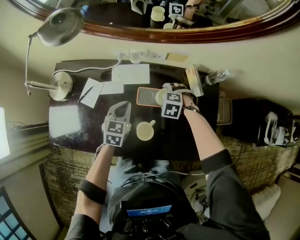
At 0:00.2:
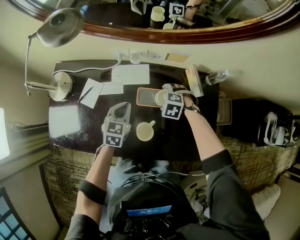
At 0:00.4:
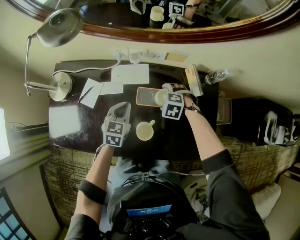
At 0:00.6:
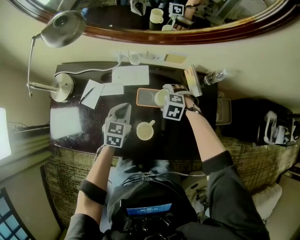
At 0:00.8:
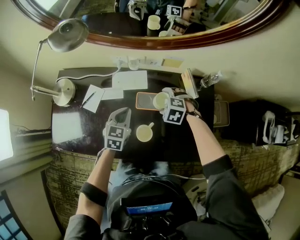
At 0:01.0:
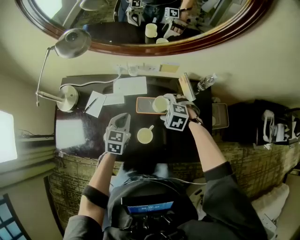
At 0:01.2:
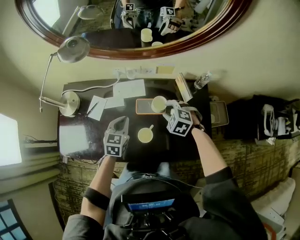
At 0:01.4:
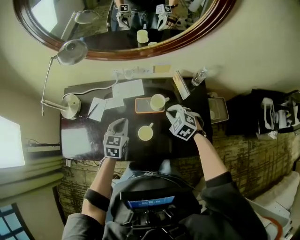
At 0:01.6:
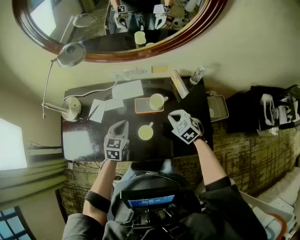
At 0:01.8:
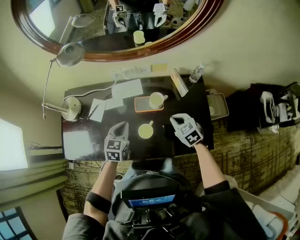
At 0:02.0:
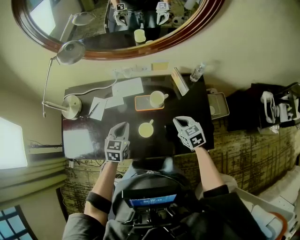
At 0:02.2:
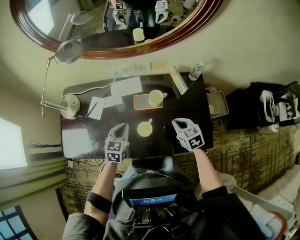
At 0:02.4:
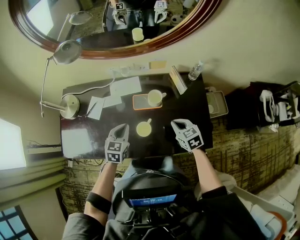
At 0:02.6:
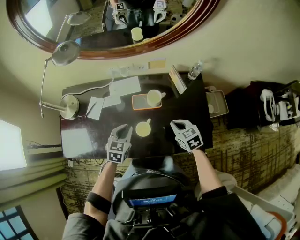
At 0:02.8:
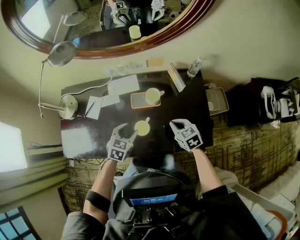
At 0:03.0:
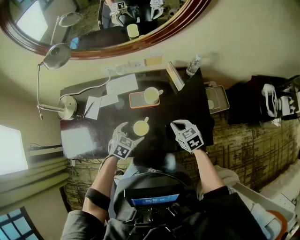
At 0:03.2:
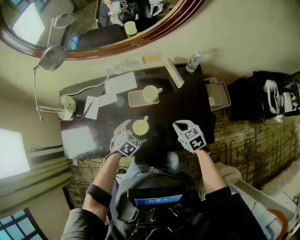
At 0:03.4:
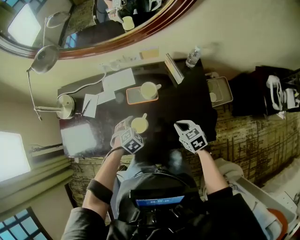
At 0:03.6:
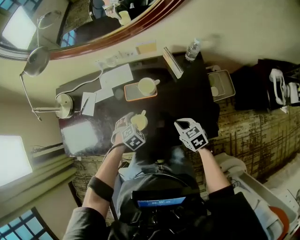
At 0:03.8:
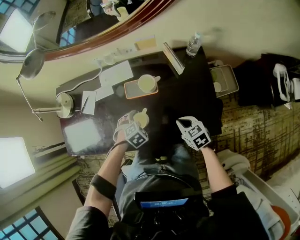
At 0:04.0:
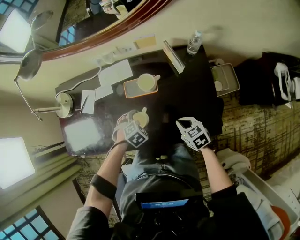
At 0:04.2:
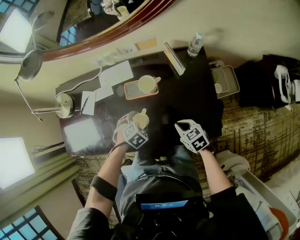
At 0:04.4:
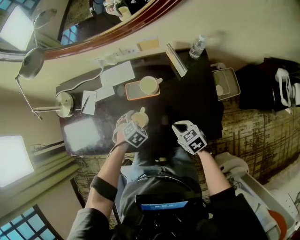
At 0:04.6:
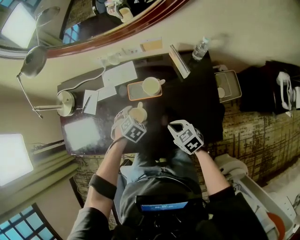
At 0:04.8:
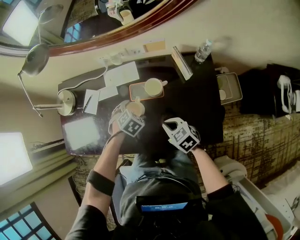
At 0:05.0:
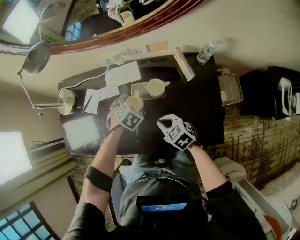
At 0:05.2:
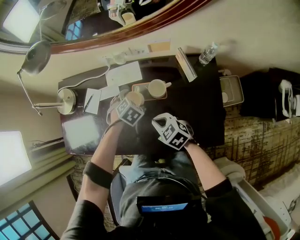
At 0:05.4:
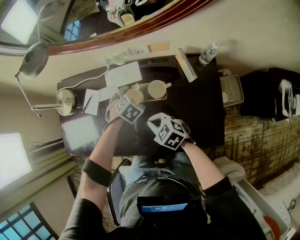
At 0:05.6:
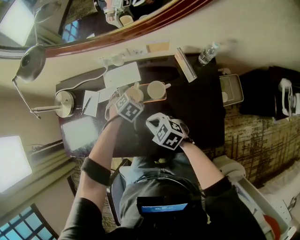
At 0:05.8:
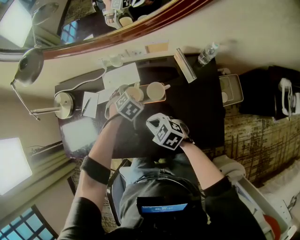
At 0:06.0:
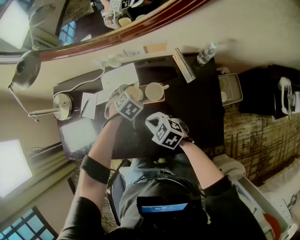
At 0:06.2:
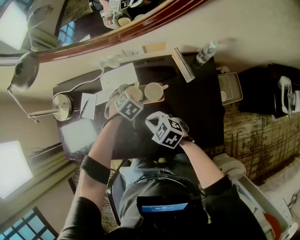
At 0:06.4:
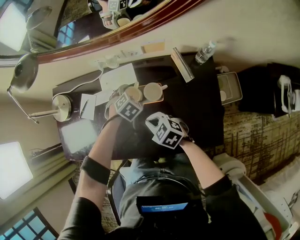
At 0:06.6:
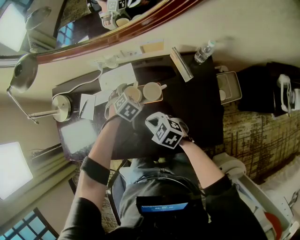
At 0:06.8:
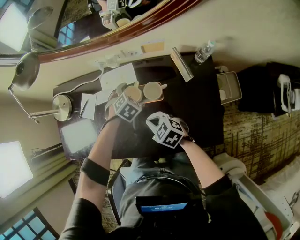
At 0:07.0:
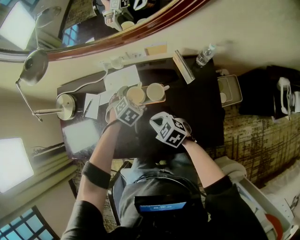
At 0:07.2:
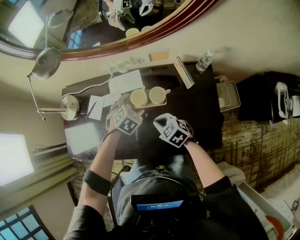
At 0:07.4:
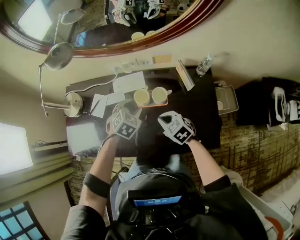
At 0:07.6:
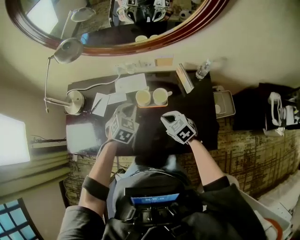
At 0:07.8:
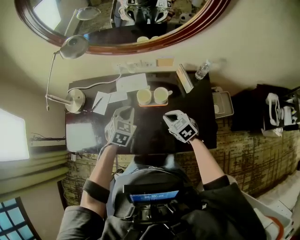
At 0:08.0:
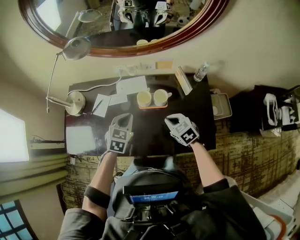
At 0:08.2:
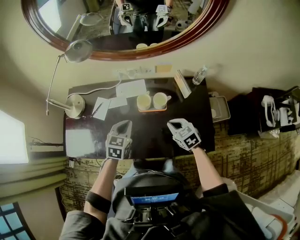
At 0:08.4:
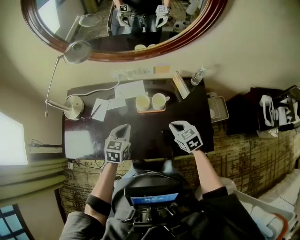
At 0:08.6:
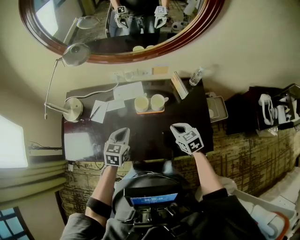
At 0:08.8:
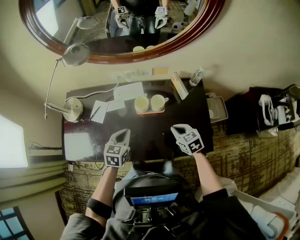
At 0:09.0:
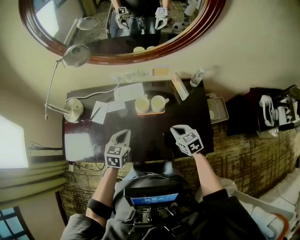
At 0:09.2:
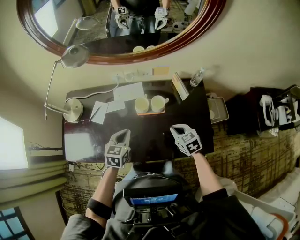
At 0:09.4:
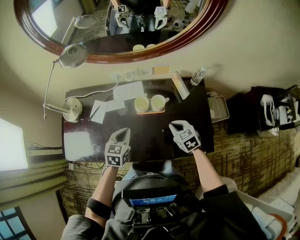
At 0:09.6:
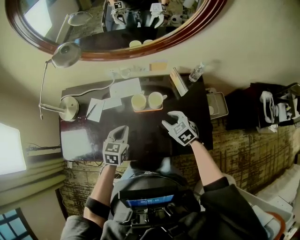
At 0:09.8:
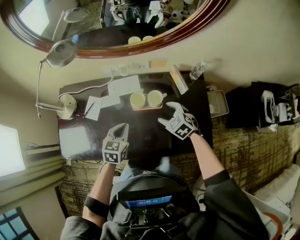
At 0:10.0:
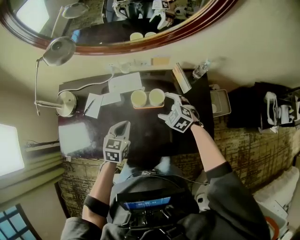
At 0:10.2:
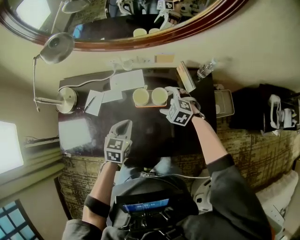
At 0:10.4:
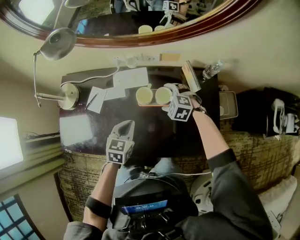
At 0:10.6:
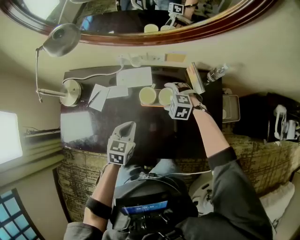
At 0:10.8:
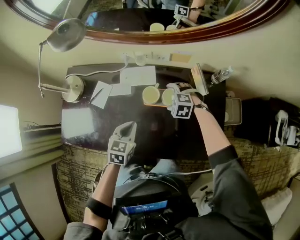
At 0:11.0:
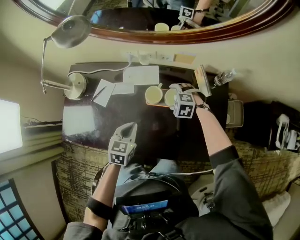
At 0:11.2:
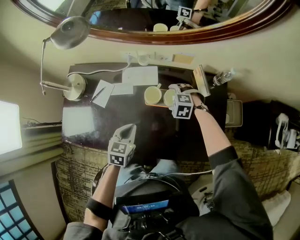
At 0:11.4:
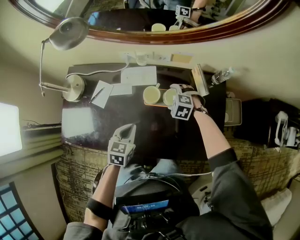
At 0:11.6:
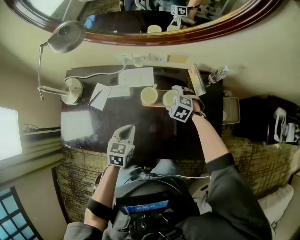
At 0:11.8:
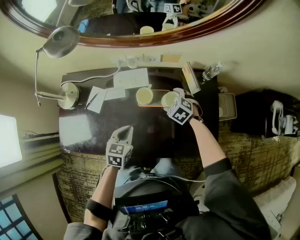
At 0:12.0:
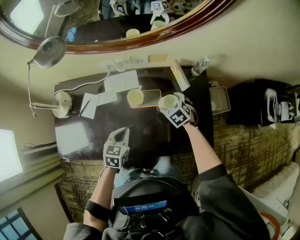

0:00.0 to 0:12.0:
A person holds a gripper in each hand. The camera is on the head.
0:00.0 to 0:01.6: The left gripper shifts by approximately 10 cm; the right gripper shifts approximately 15 cm upward, changes its angle by some 40 degrees, and closes.
0:01.6 to 0:03.0: The left gripper travels to the right, downward and backward by about 15 cm, turns by some 30 degrees, and opens its fingers. The right gripper heads backward, covering approximately 5 cm, and swivels roughly 20 degrees.
0:03.0 to 0:04.4: The two grippers go roughly 10 cm downward. The left gripper changes its angle by some 30 degrees.
0:04.4 to 0:06.0: The left gripper changes place by some 15 cm, while the right gripper shifts by approximately 15 cm, and swivels some 20 degrees.
0:06.0 to 0:07.6: The right gripper travels upward and to the right by about 10 cm. The left gripper heads upward and backward, covering some 15 cm, changes its angle by some 30 degrees, and closes up.
0:07.6 to 0:09.0: The left gripper moves backward and to the left, roughly 10 cm, and changes its angle by some 30 degrees, while the right gripper goes some 5 cm to the right.
0:09.0 to 0:10.4: The left gripper moves roughly 5 cm. Meanwhile the right gripper heads forward and downward, covering about 20 cm, twists roughly 50 degrees counterclockwise, seen from behind, and opens up.
0:10.4 to 0:12.0: The right gripper moves to the right, some 5 cm, and rotates roughly 40 degrees.

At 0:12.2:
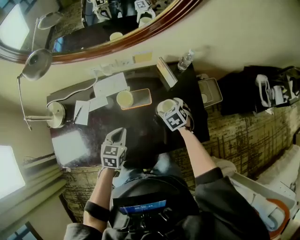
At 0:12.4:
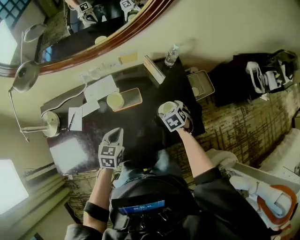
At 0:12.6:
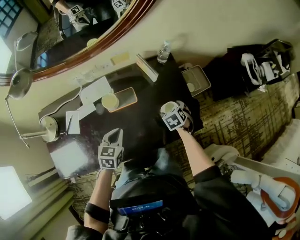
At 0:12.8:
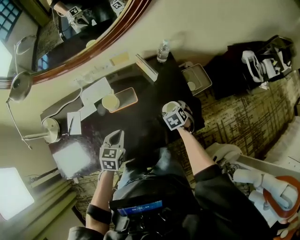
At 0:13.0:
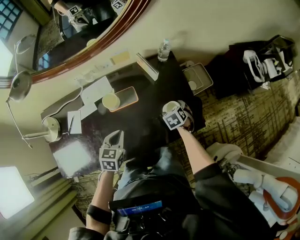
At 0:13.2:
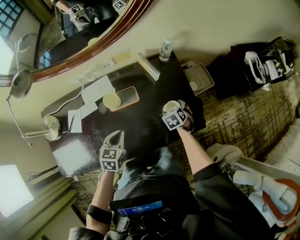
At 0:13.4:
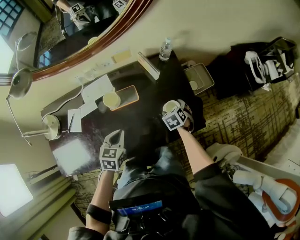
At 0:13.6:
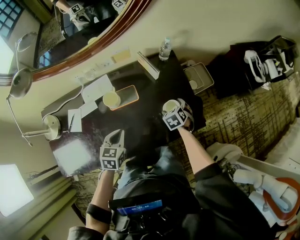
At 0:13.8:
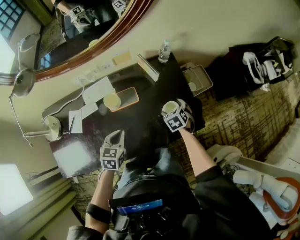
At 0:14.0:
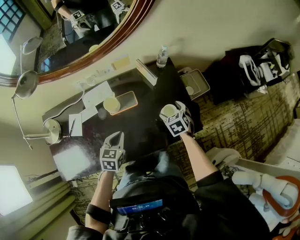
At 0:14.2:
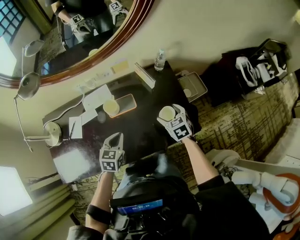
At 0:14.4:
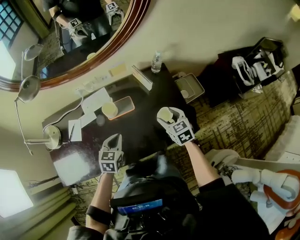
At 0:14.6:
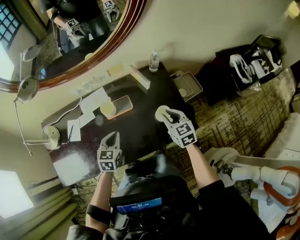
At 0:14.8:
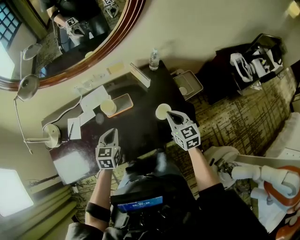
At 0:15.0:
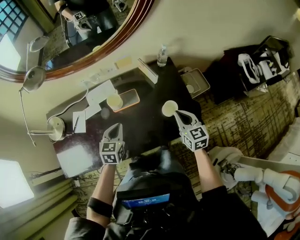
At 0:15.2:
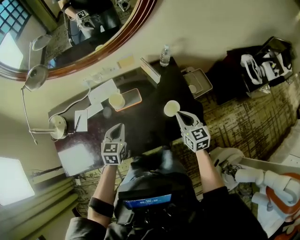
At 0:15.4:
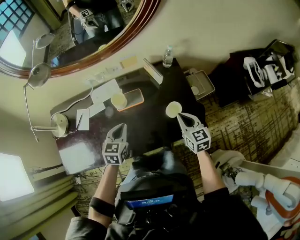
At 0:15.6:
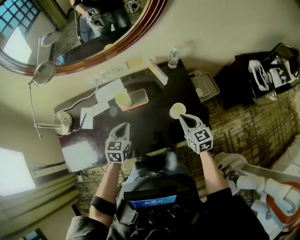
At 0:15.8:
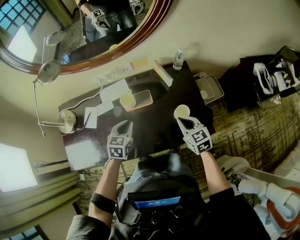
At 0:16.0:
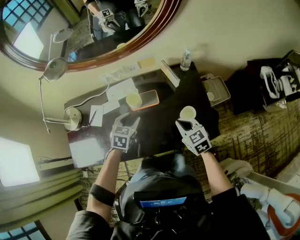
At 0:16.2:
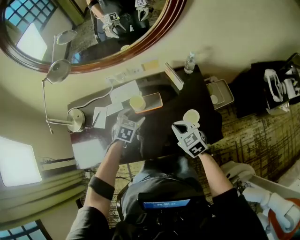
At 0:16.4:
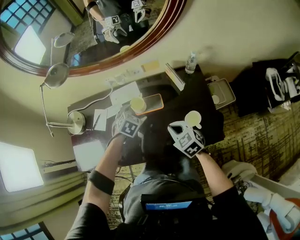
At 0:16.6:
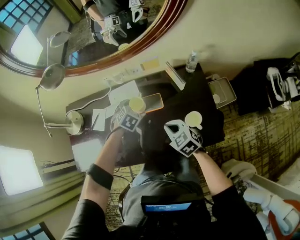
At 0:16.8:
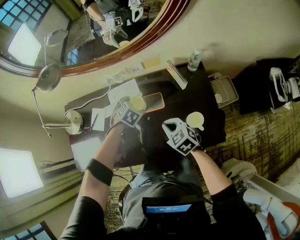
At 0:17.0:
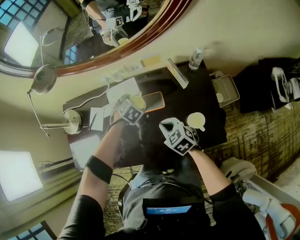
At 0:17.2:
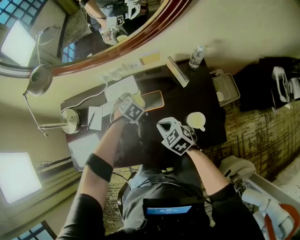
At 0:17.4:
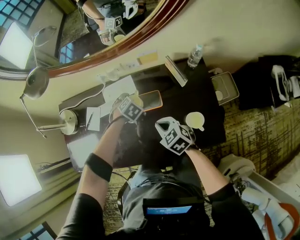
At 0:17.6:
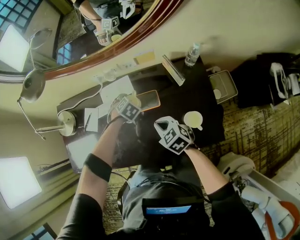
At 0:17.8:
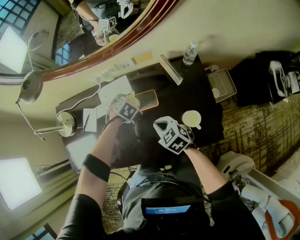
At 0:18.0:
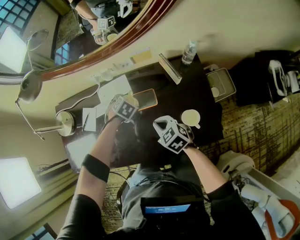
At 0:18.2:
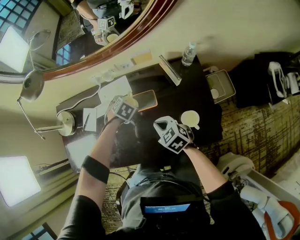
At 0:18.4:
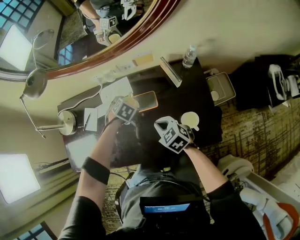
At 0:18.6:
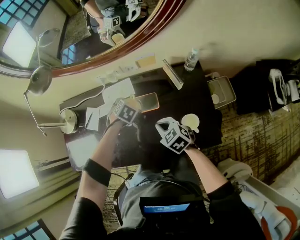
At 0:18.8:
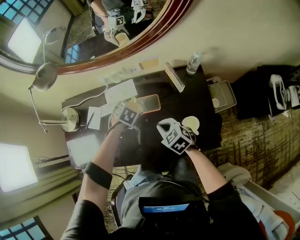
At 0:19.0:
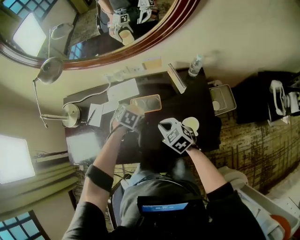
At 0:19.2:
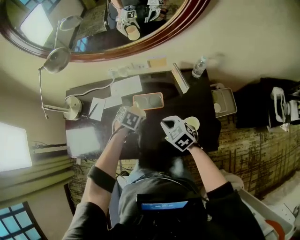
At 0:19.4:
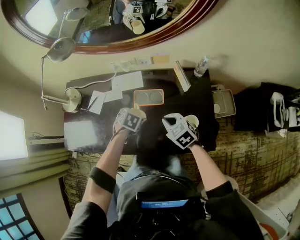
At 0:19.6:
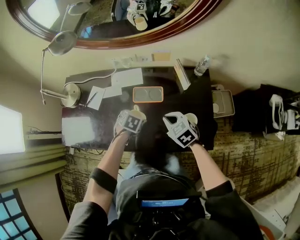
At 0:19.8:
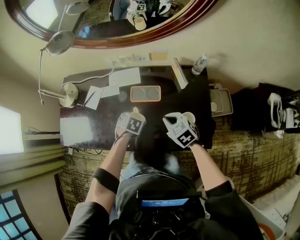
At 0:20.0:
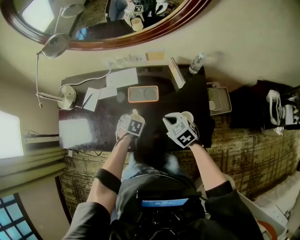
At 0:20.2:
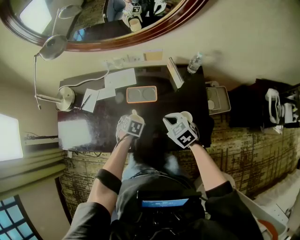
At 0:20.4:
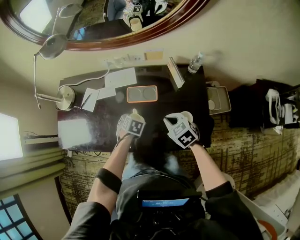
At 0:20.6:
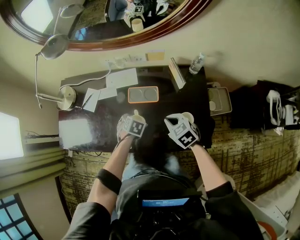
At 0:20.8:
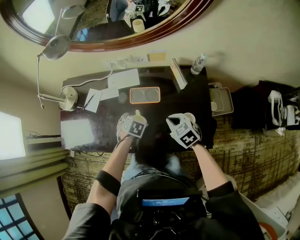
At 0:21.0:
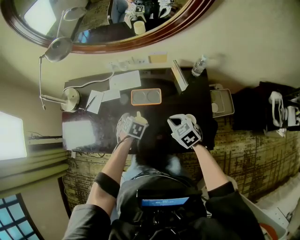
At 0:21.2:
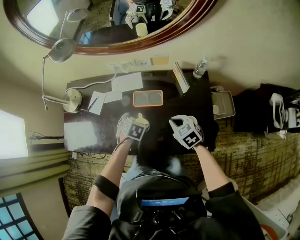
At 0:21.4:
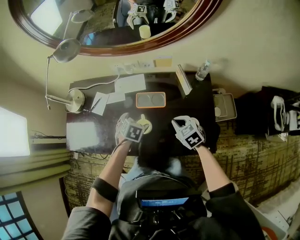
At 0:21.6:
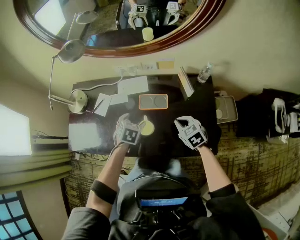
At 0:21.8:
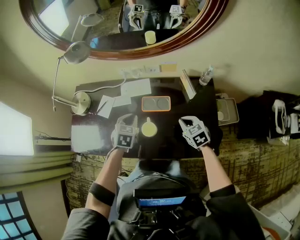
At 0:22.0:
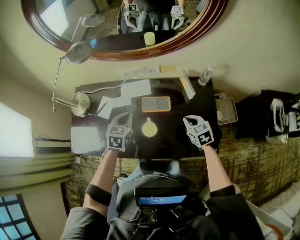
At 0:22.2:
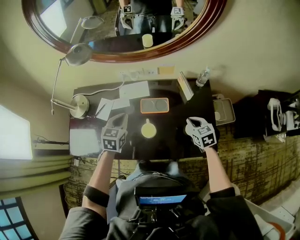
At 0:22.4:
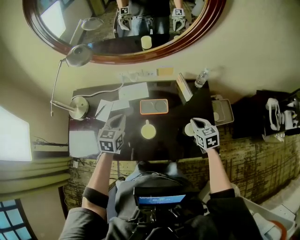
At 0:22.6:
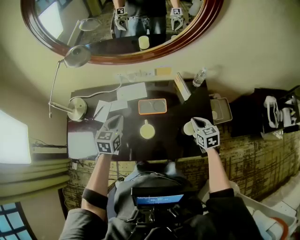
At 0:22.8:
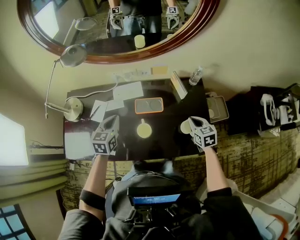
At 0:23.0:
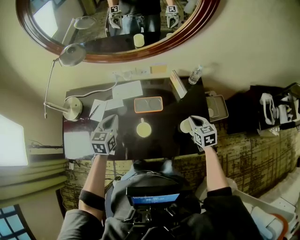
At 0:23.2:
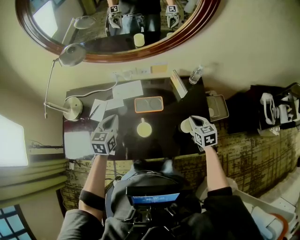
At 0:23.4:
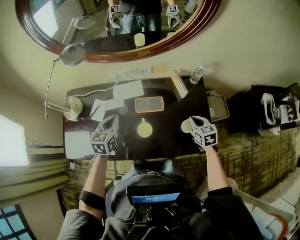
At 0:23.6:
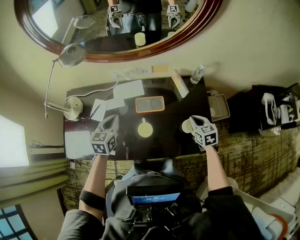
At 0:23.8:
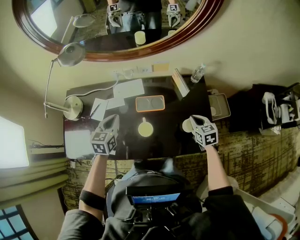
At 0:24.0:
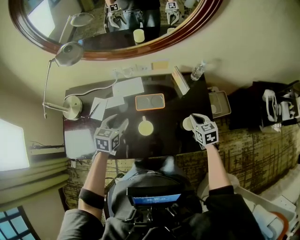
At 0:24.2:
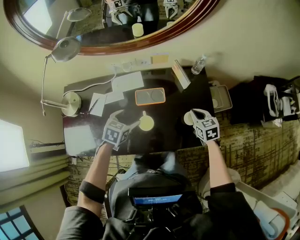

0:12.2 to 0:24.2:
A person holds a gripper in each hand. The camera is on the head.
0:12.2 to 0:13.8: The right gripper goes roughly 10 cm to the right.
0:13.8 to 0:15.2: The right gripper is displaced upward and backward by some 15 cm, tilts its fingers about 30 degrees upward, and closes.
0:15.2 to 0:16.6: The left gripper goes roughly 15 cm forward and downward, changes its angle by roughly 30 degrees, and opens. Meanwhile the right gripper travels to the left by about 15 cm, and turns by roughly 40 degrees.
0:16.6 to 0:18.2: The left gripper goes approximately 5 cm downward. Meanwhile the right gripper moves roughly 5 cm.
0:18.2 to 0:19.8: The left gripper ends up roughly 15 cm from where it was, and changes its angle by about 30 degrees. The right gripper changes place by some 5 cm.
0:19.8 to 0:21.2: The grippers move only a little.
0:21.2 to 0:22.6: The left gripper goes some 20 cm upward and to the left, points its fingers approximately 40 degrees further upward, and closes up. The right gripper shifts about 10 cm to the right, and swivels some 30 degrees.
0:22.6 to 0:24.2: The left gripper moves downward and to the right, about 10 cm, changes its angle by about 30 degrees, and opens.
